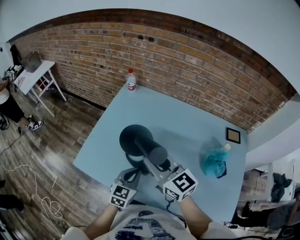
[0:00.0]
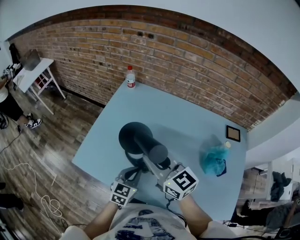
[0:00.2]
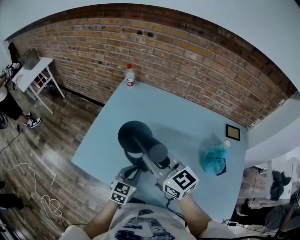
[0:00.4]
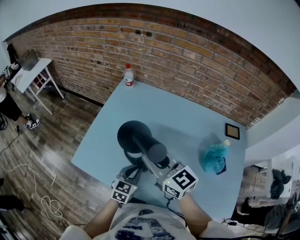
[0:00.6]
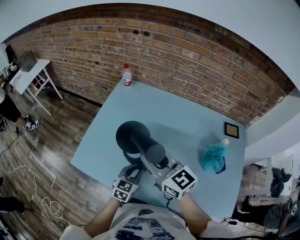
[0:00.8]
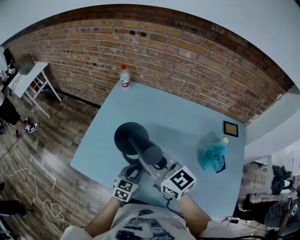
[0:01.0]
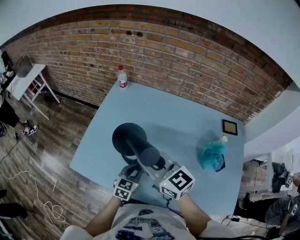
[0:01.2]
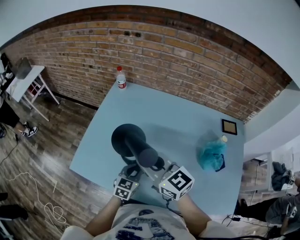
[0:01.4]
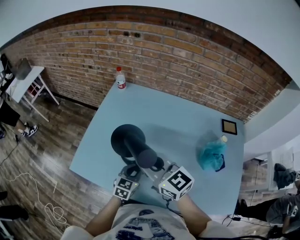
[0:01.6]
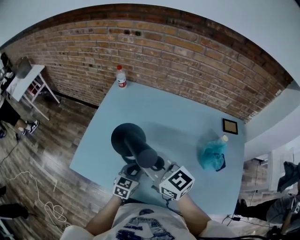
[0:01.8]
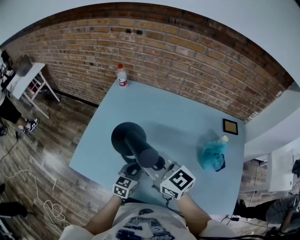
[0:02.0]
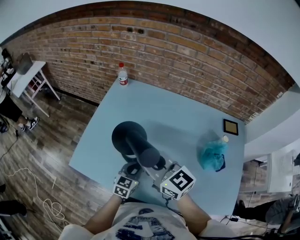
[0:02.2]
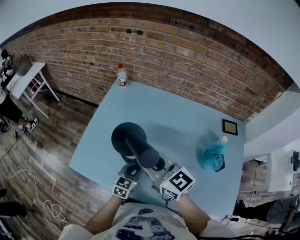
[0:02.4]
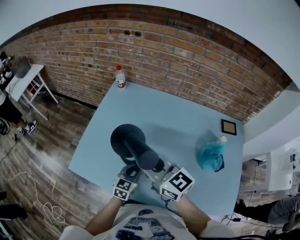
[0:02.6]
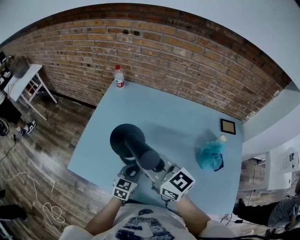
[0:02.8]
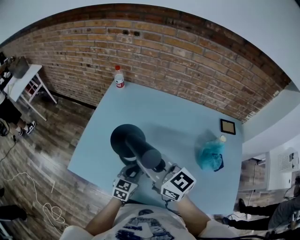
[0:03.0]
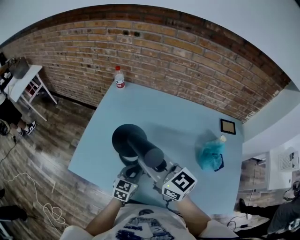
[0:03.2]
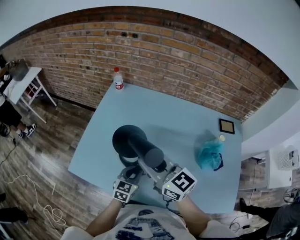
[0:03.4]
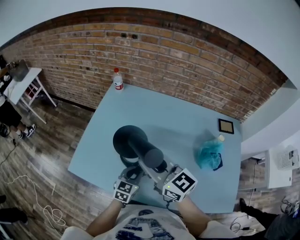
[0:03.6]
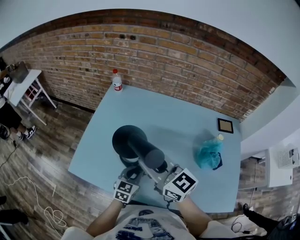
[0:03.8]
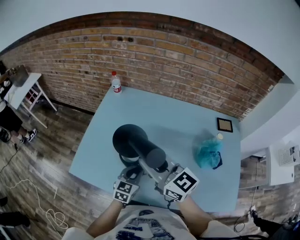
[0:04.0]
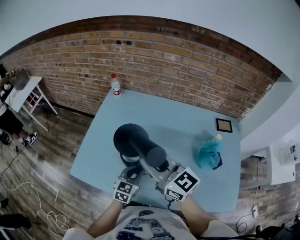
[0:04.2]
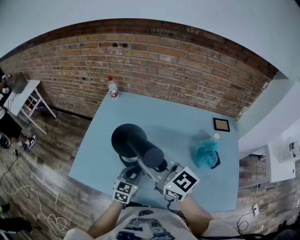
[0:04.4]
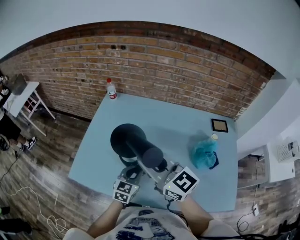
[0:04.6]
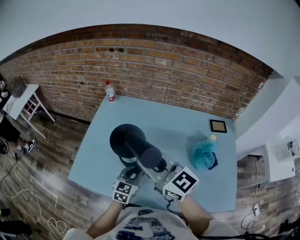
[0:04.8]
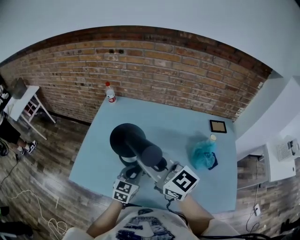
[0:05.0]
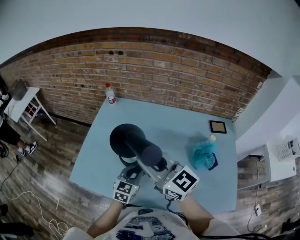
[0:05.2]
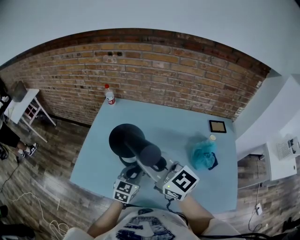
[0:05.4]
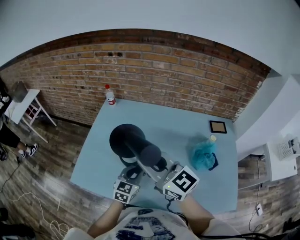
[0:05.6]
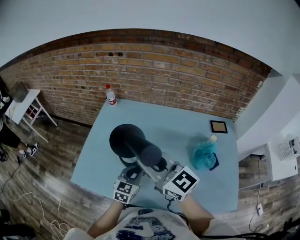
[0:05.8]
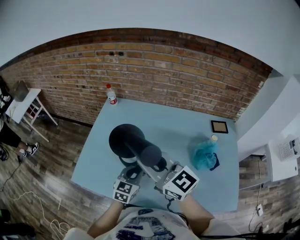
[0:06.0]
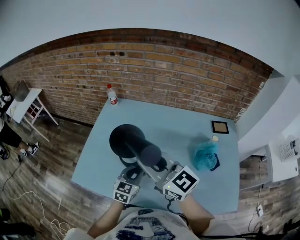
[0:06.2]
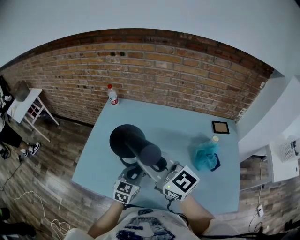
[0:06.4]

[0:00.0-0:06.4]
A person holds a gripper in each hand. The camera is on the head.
0:00.0 to 0:01.6: The left gripper shifts roughly 5 cm downward.
0:01.6 to 0:03.2: The grippers stay close to where they were, moving slightly.
0:03.2 to 0:04.8: Both grippers travel together upward, approximately 5 cm.
0:04.8 to 0:06.4: The grippers make only small movements.

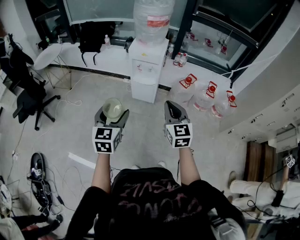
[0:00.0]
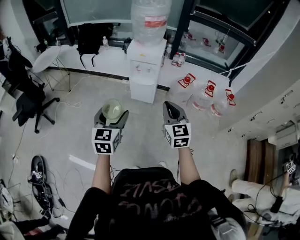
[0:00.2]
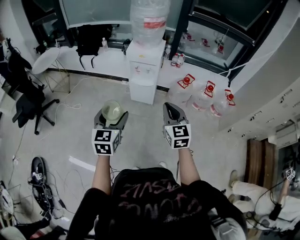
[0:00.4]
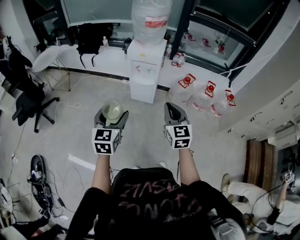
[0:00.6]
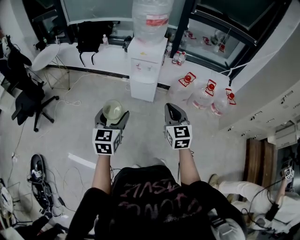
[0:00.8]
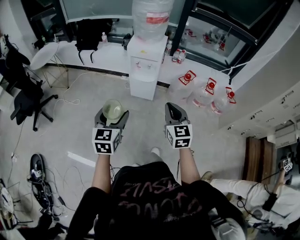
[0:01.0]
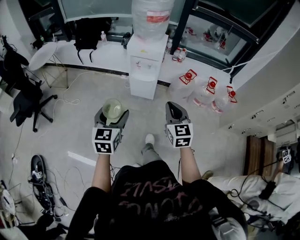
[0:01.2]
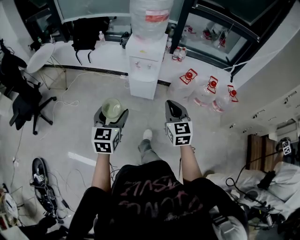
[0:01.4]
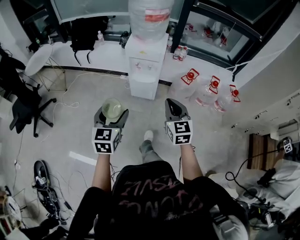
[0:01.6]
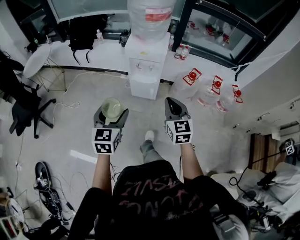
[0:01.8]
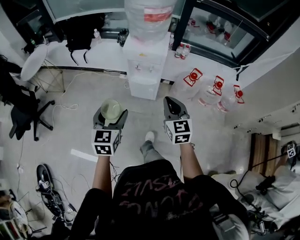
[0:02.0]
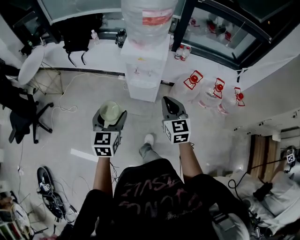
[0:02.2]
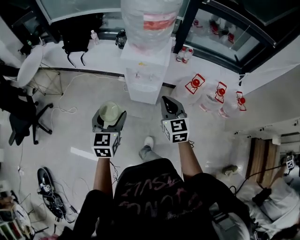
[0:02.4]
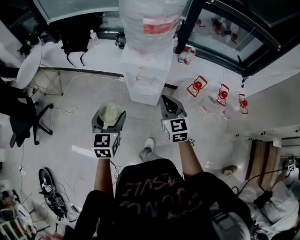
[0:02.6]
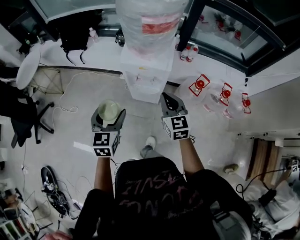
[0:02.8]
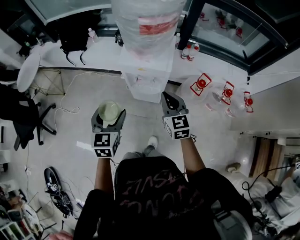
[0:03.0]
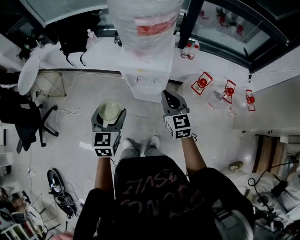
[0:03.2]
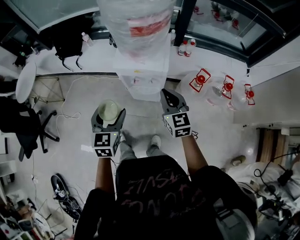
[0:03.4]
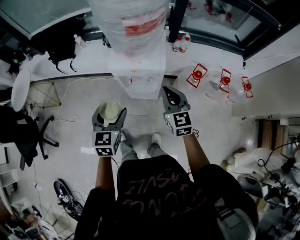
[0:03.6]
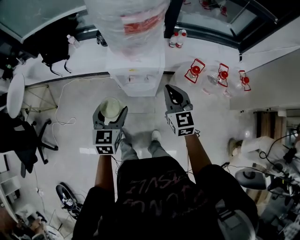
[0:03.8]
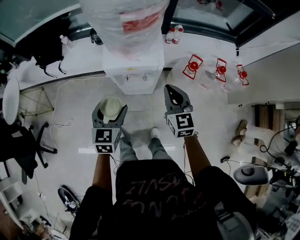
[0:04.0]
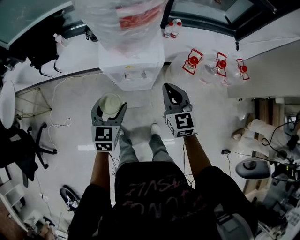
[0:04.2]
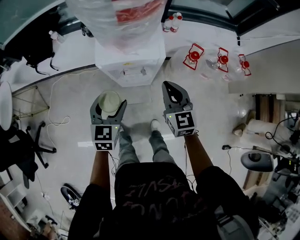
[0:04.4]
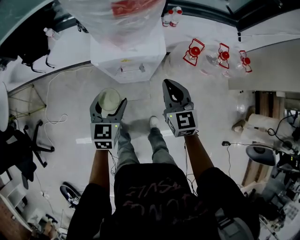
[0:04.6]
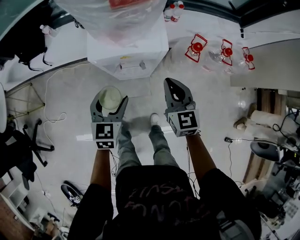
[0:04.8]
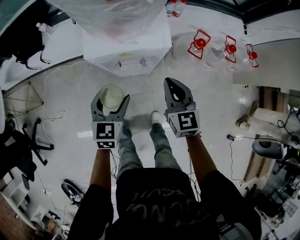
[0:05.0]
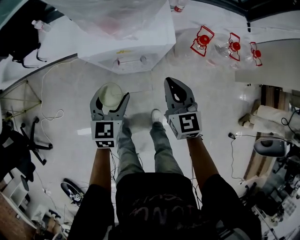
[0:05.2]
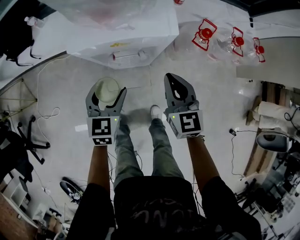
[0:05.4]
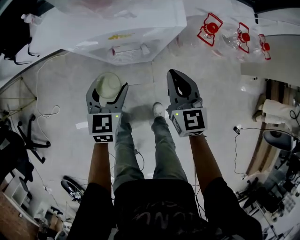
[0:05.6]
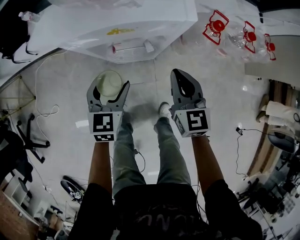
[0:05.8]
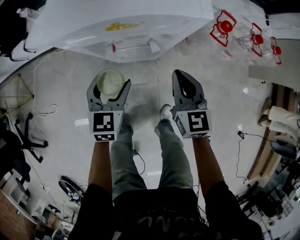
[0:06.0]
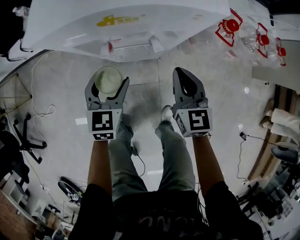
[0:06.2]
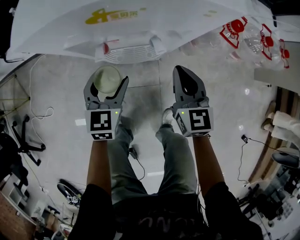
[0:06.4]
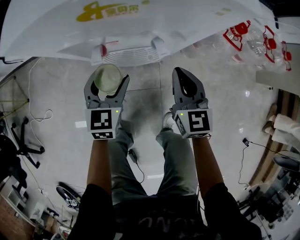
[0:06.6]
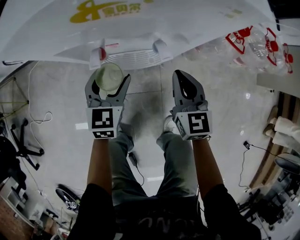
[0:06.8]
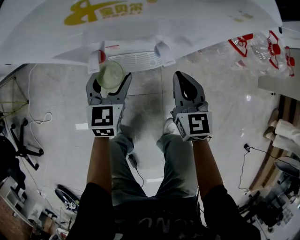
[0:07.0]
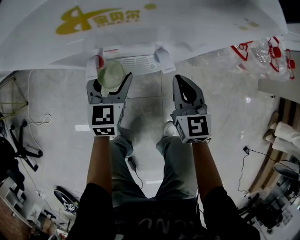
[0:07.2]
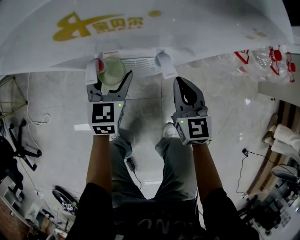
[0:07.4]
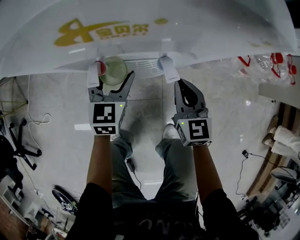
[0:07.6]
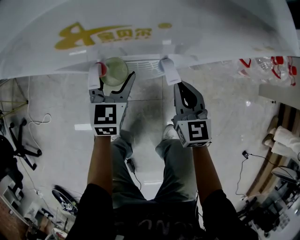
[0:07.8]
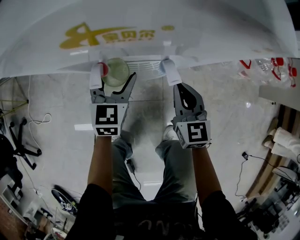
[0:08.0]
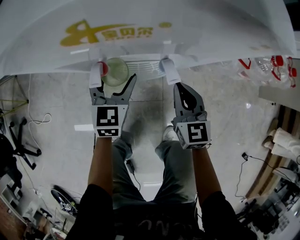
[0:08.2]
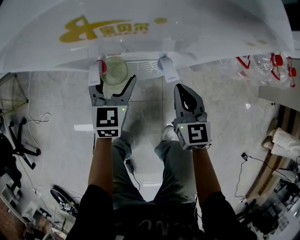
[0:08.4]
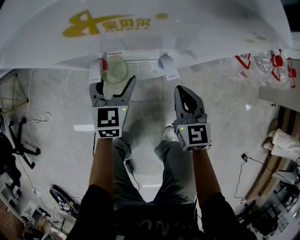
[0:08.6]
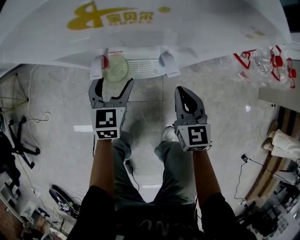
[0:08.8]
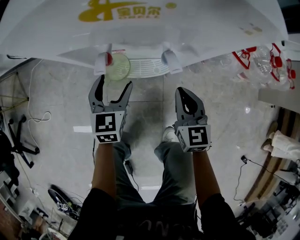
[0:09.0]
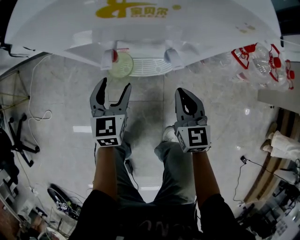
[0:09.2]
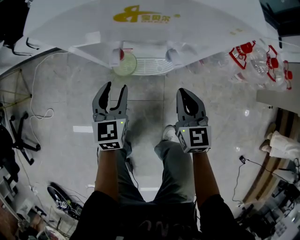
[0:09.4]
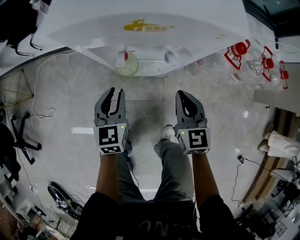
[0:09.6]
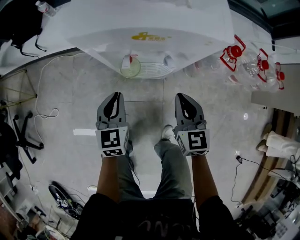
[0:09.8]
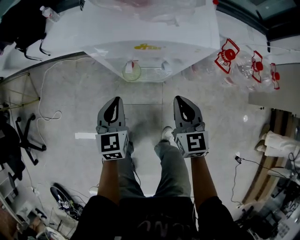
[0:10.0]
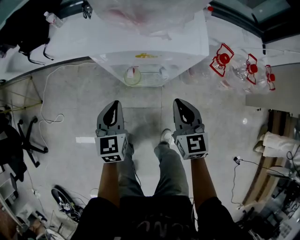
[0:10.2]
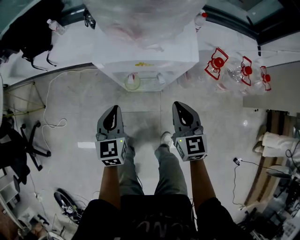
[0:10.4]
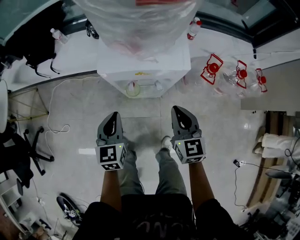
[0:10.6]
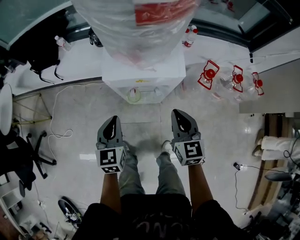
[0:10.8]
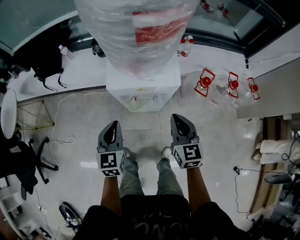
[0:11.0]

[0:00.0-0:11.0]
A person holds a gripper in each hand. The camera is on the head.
0:00.0 to 0:01.6: The right gripper moves forward and downward, some 10 cm; the left gripper shifts approximately 10 cm forward.
0:01.6 to 0:03.2: Both grippers travel together forward, roughly 30 cm.
0:03.2 to 0:04.8: The right gripper heads downward, covering approximately 10 cm, while the left gripper travels downward and forward by some 20 cm, and turns by roughly 20 degrees.
0:04.8 to 0:06.2: The two grippers go roughly 25 cm downward.
0:06.2 to 0:07.8: The right gripper shifts about 10 cm downward. The left gripper travels downward and forward by about 10 cm.
0:07.8 to 0:09.4: The left gripper is displaced backward by approximately 10 cm, and closes its fingers. The right gripper moves approximately 5 cm.
0:09.4 to 0:11.0: The two grippers go approximately 30 cm upward. The left gripper closes up.

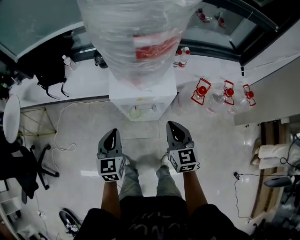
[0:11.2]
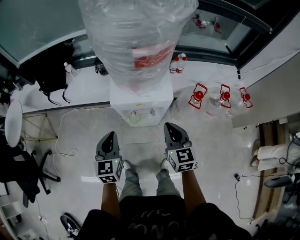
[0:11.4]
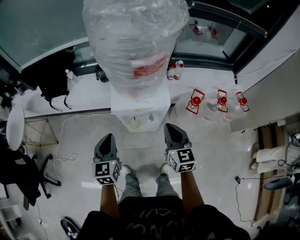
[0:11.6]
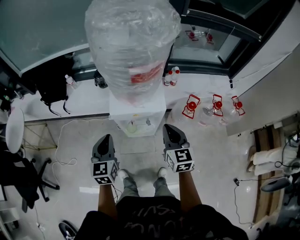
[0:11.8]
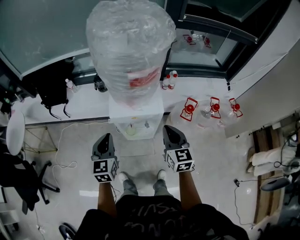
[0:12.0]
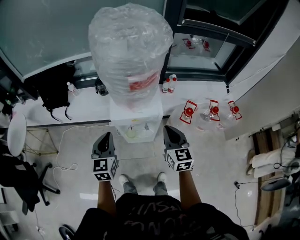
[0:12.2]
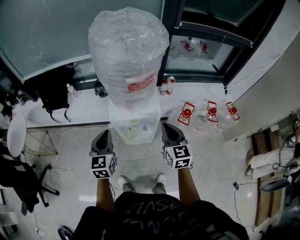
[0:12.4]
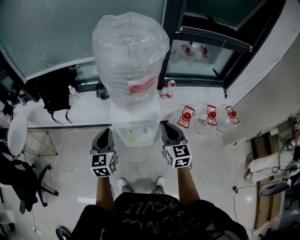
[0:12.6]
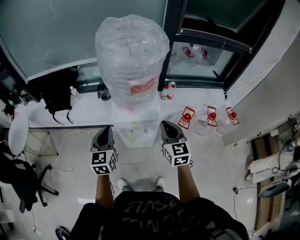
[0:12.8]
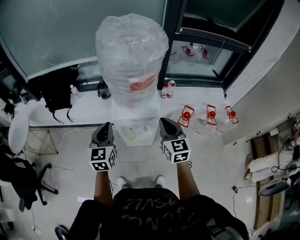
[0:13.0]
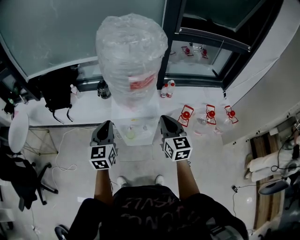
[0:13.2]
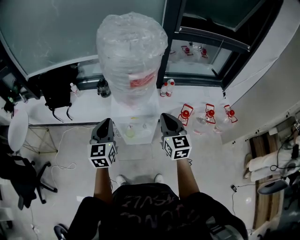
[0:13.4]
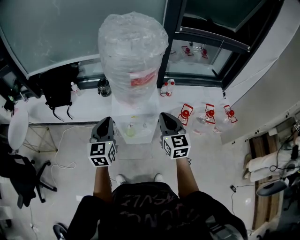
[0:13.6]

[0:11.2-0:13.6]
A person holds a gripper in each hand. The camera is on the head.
0:11.2 to 0:12.4: The grippers both shift upward by roughly 15 cm.
0:12.4 to 0:13.6: The grippers both shift upward by approximately 5 cm.

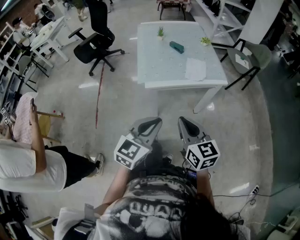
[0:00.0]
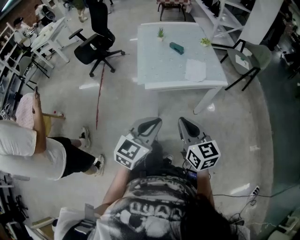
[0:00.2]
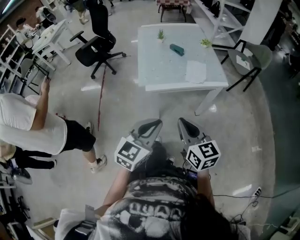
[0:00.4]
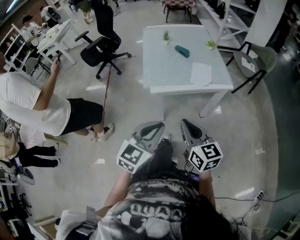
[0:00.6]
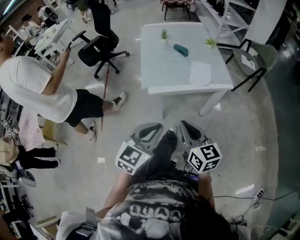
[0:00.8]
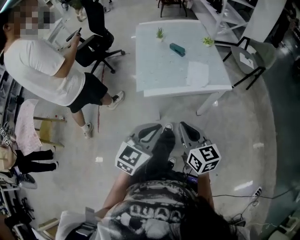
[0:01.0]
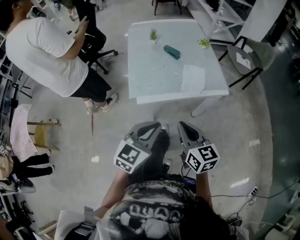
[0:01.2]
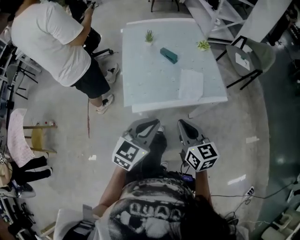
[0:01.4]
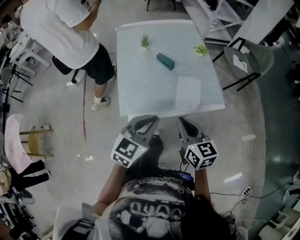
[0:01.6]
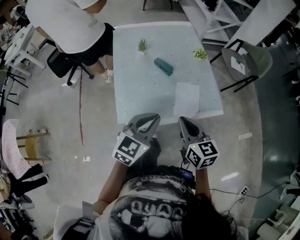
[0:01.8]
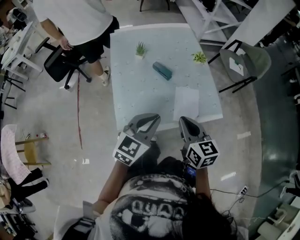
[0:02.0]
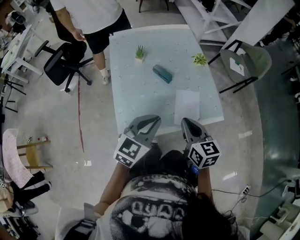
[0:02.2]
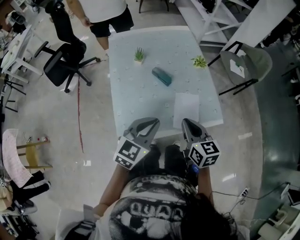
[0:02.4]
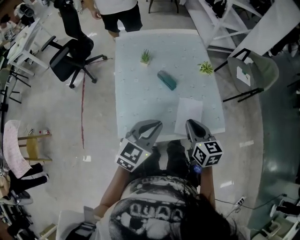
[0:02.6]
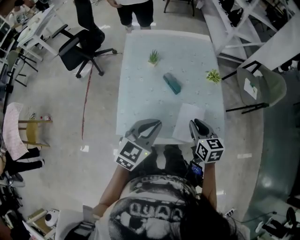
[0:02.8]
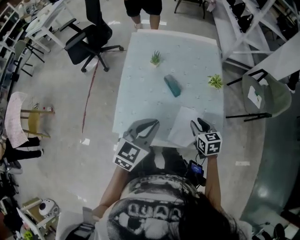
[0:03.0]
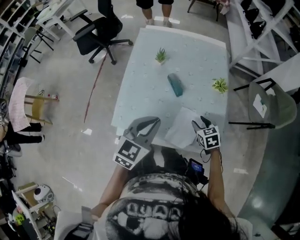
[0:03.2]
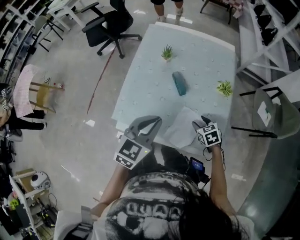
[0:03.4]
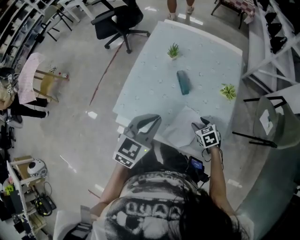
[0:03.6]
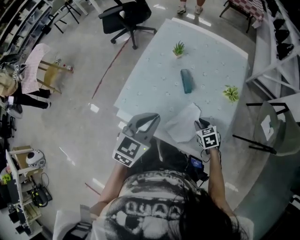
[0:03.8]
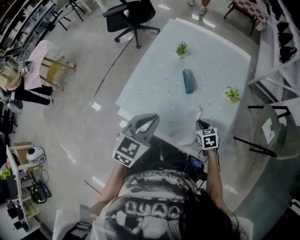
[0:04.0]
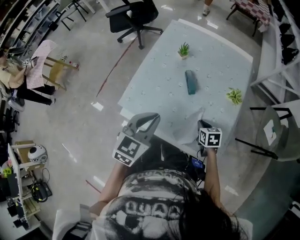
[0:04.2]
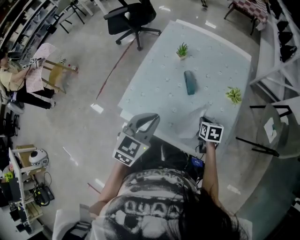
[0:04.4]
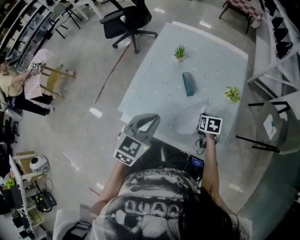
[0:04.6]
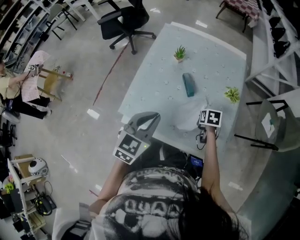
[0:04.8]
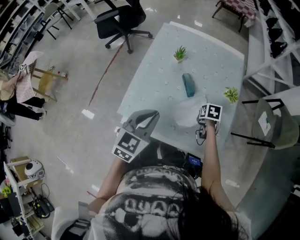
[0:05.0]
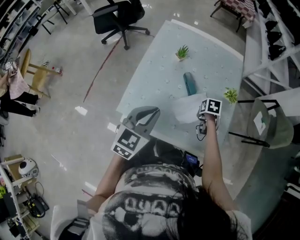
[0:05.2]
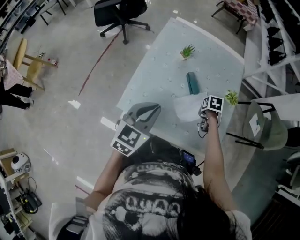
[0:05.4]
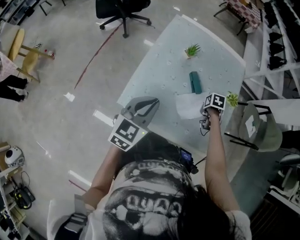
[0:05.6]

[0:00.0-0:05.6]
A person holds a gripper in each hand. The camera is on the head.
0:00.0 to 0:01.4: Both grippers move forward, about 20 cm.
0:01.4 to 0:02.8: Both grippers move forward, approximately 25 cm.
0:02.8 to 0:04.2: The right gripper travels downward by roughly 15 cm, changes its angle by some 30 degrees, and opens and closes again. Meanwhile the left gripper changes its angle by approximately 30 degrees.
0:04.2 to 0:05.6: The left gripper shifts by some 10 cm, while the right gripper ends up roughly 10 cm from where it was, and swivels approximately 40 degrees.
